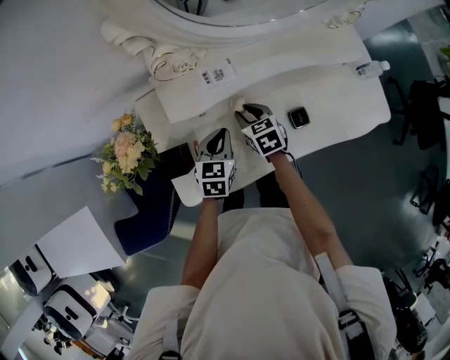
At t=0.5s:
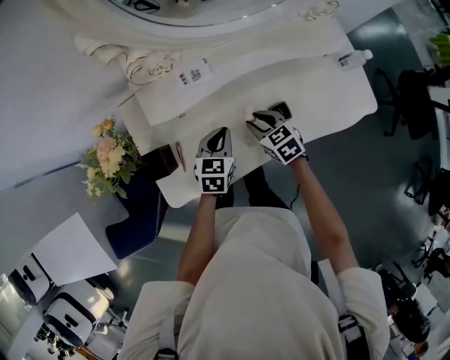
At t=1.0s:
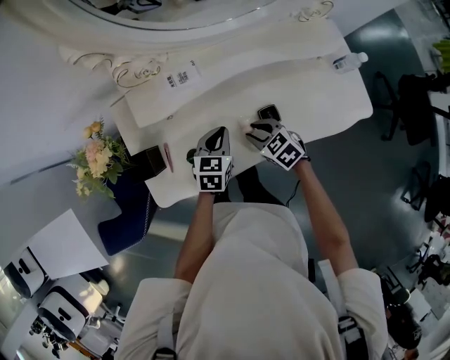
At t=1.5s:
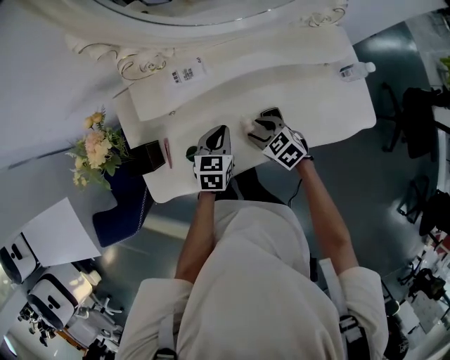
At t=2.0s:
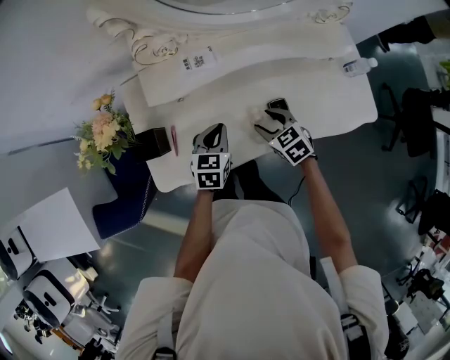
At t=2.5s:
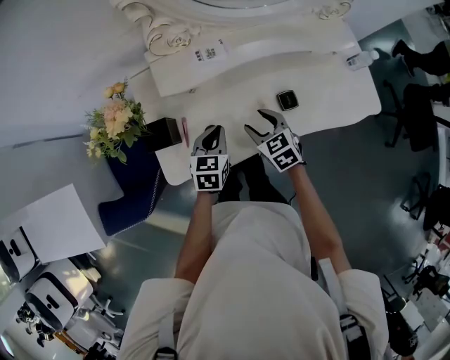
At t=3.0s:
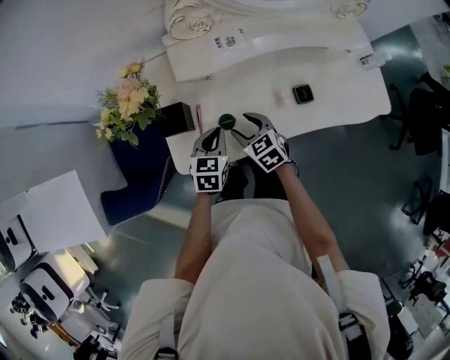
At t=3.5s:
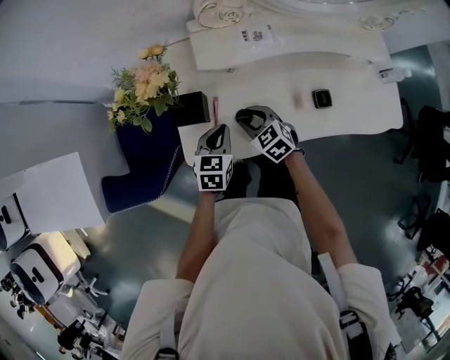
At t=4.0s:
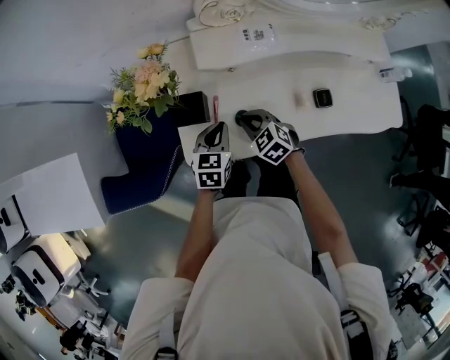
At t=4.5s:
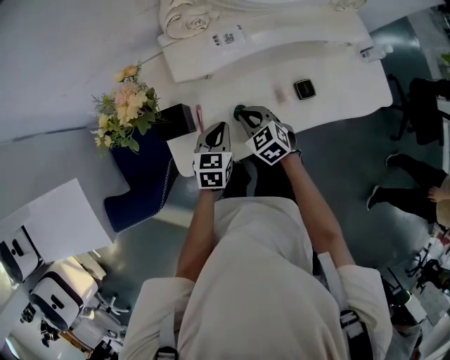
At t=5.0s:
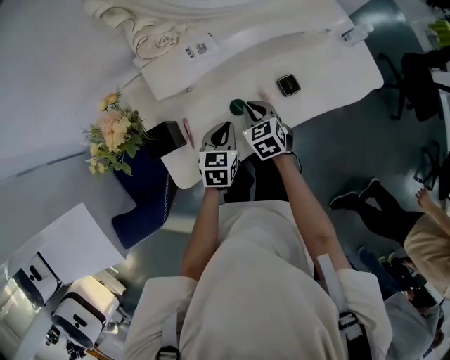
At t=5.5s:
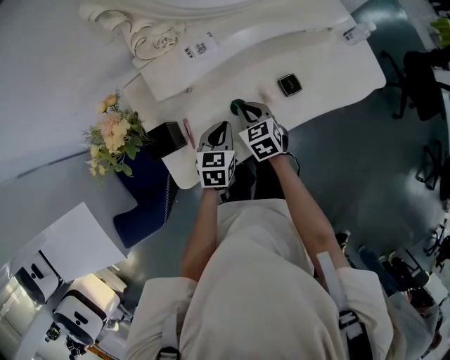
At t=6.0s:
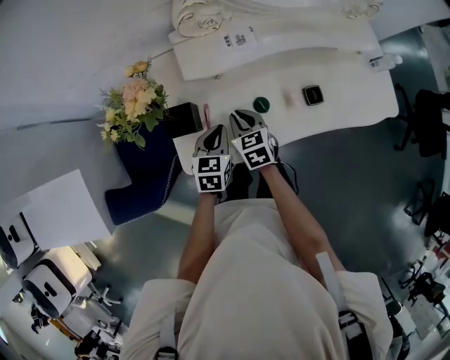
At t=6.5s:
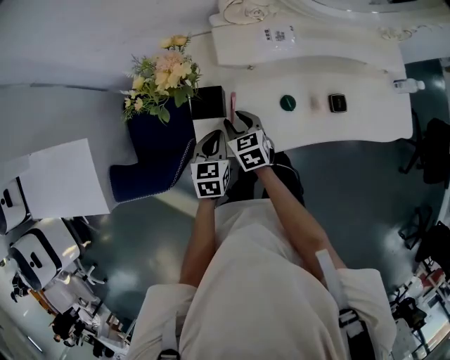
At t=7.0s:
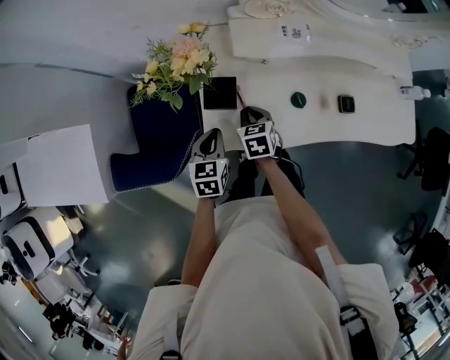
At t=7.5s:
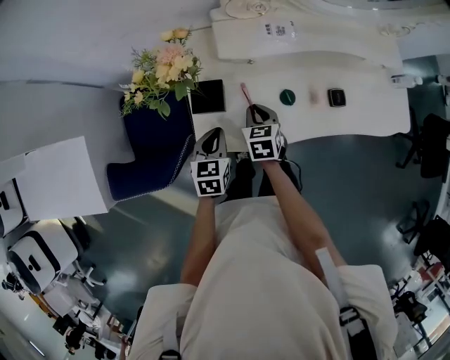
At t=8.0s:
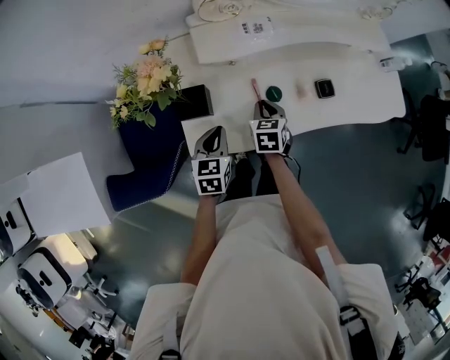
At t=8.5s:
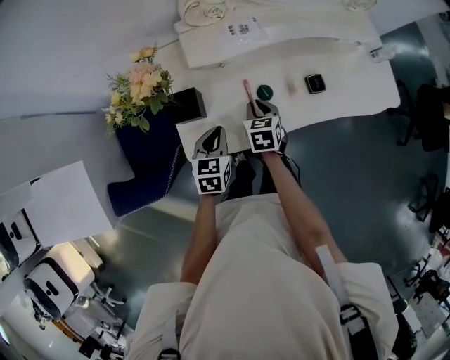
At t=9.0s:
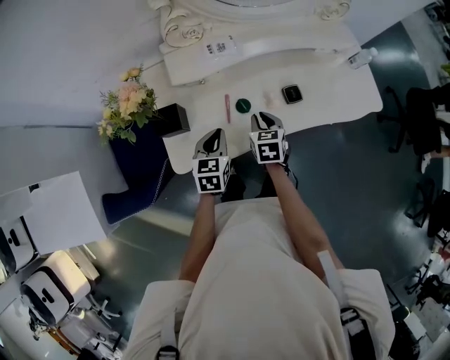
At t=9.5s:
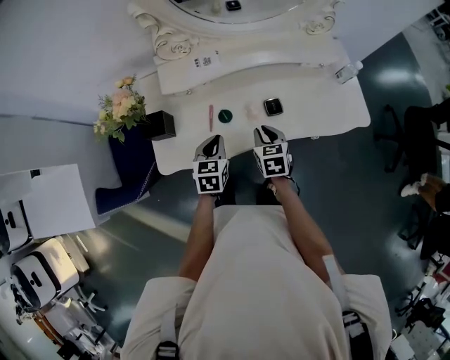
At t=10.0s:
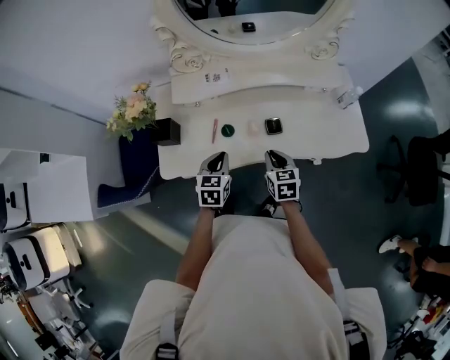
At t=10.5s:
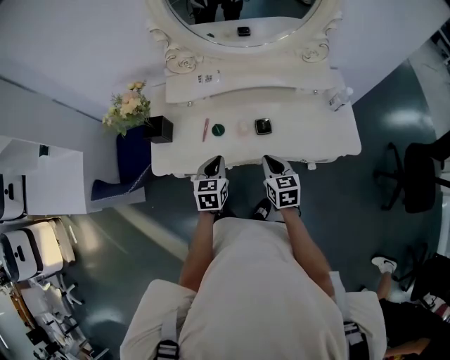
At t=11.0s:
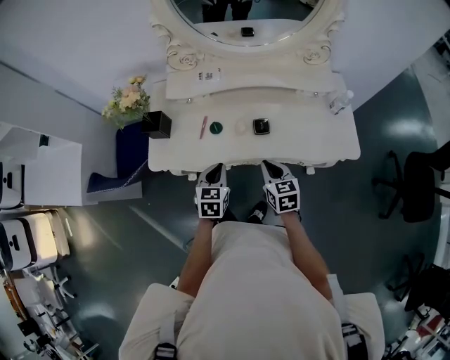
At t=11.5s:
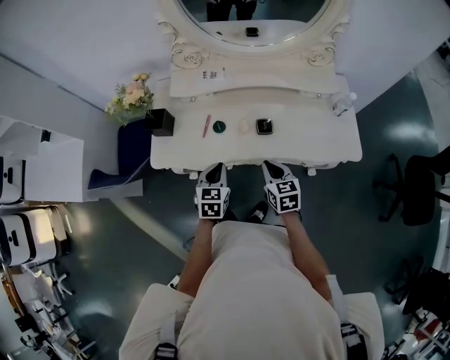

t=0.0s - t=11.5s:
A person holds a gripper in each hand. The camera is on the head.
t=0.0s - t=2.0s: The right gripper goes some 15 cm to the right and backward, and changes its angle by some 20 degrees, while the left gripper is displaced to the right by approximately 5 cm.
t=2.0s - t=4.0s: Both grippers move to the left, some 20 cm. The right gripper closes its fingers.
t=4.0s - t=6.0s: The right gripper swivels some 30 degrees.
t=6.0s - t=7.5s: The right gripper travels to the left and back again, about 10 cm each way, and opens and closes again. The left gripper shifts some 10 cm to the left.
t=7.5s - t=9.5s: The grippers both shift to the right by approximately 25 cm.
t=9.5s - t=11.5s: The grippers both shift backward and to the right by approximately 10 cm.

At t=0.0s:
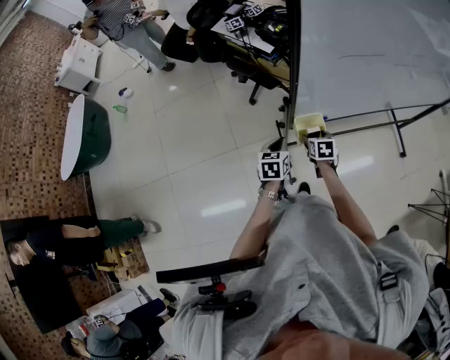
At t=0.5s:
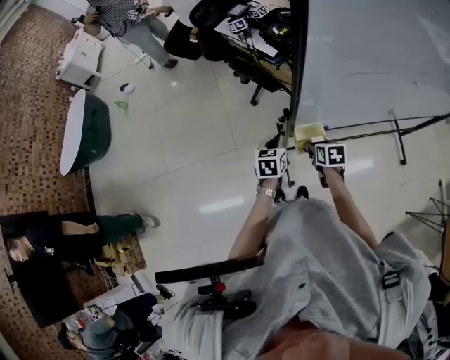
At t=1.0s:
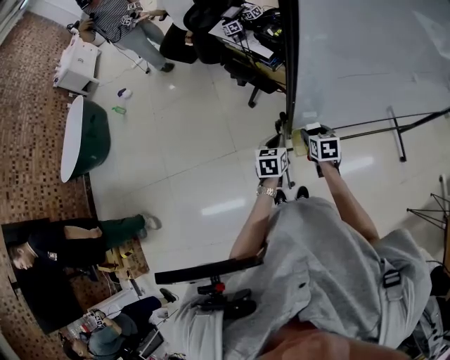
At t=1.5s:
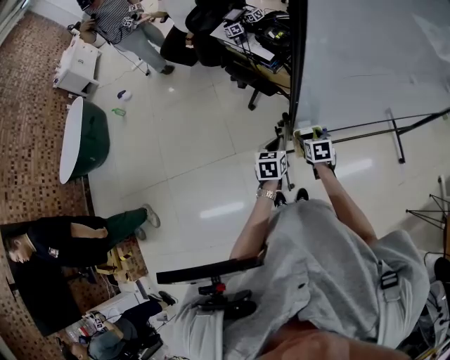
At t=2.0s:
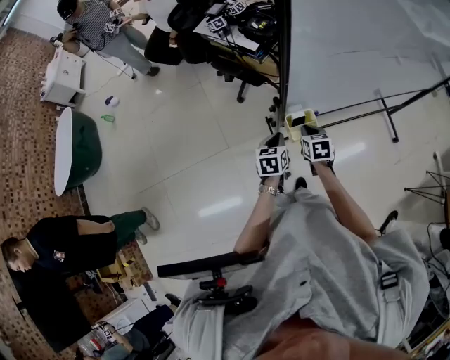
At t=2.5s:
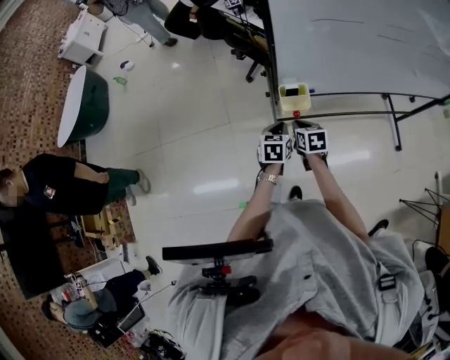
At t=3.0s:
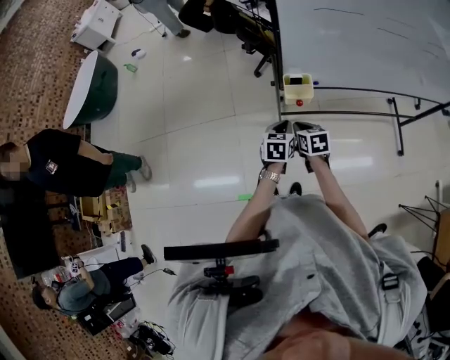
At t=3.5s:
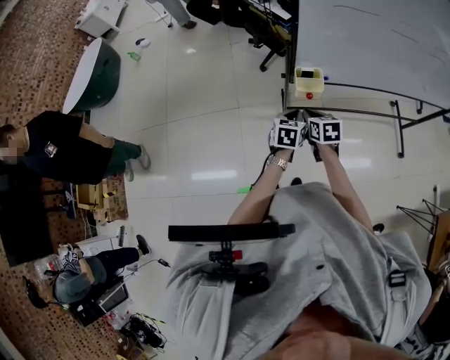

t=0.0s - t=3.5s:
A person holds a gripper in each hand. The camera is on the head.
t=0.0s - t=2.0s: The right gripper goes some 5 cm upward, and closes up.
t=2.0s - t=3.5s: The grippers both shift backward by some 15 cm.

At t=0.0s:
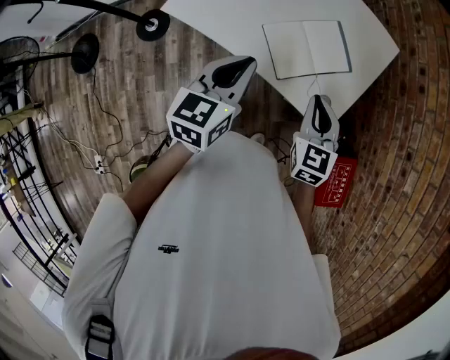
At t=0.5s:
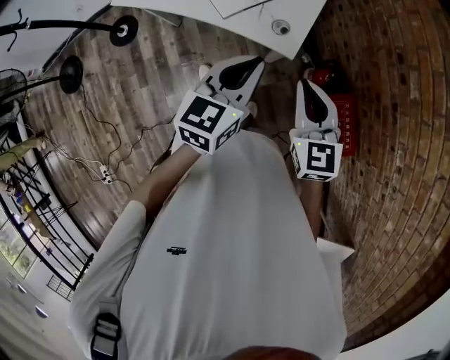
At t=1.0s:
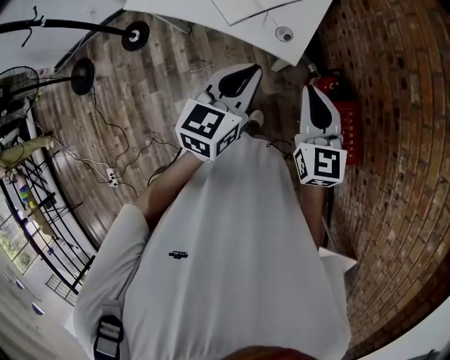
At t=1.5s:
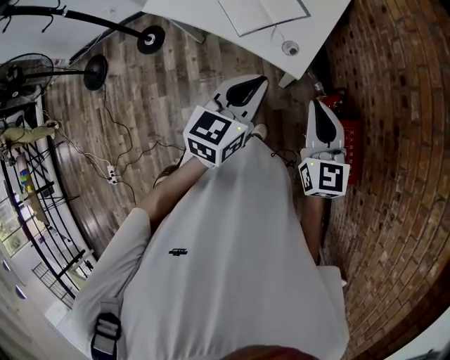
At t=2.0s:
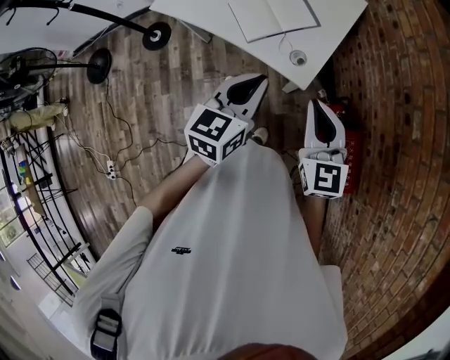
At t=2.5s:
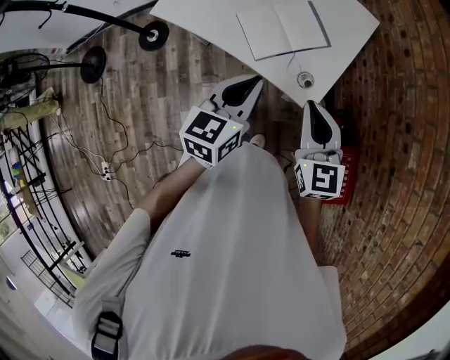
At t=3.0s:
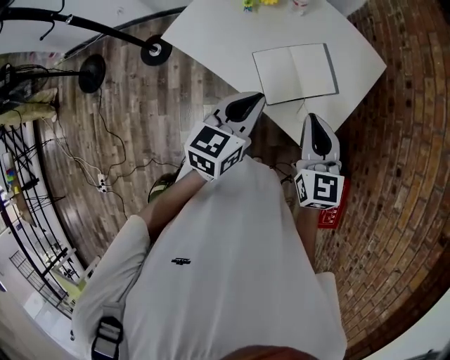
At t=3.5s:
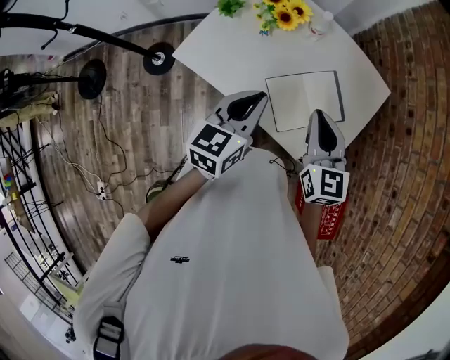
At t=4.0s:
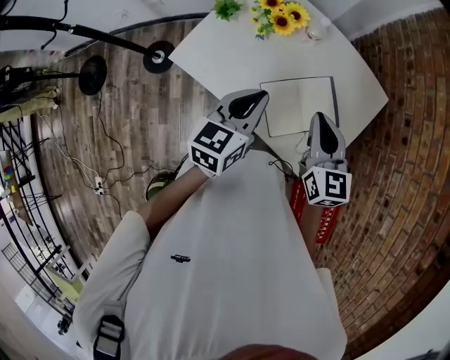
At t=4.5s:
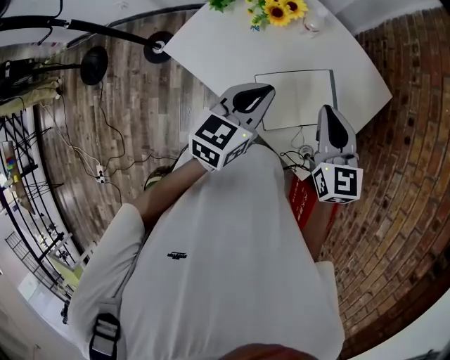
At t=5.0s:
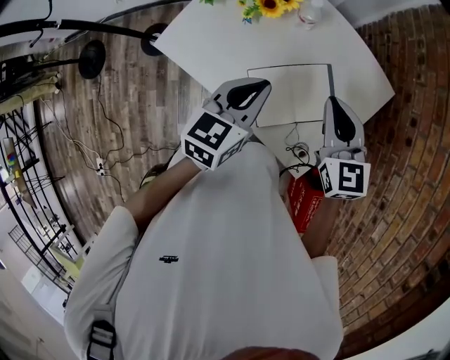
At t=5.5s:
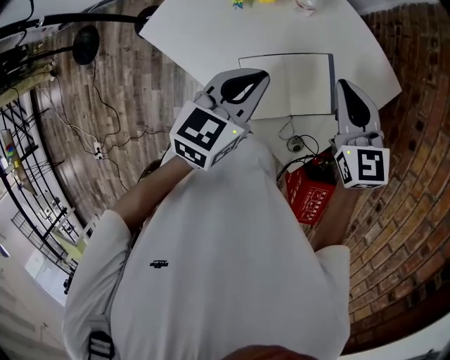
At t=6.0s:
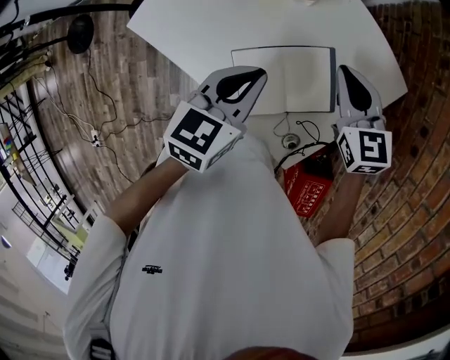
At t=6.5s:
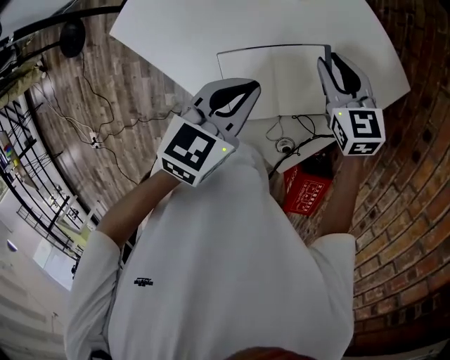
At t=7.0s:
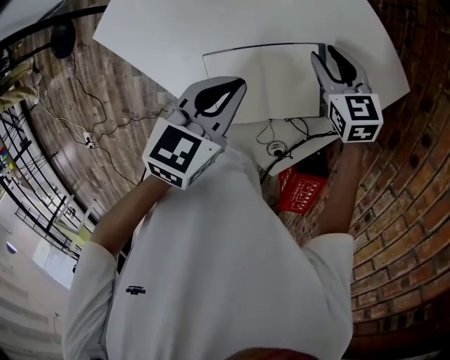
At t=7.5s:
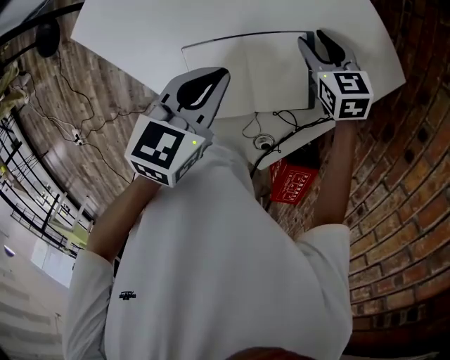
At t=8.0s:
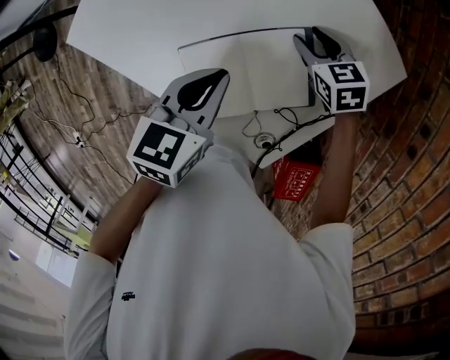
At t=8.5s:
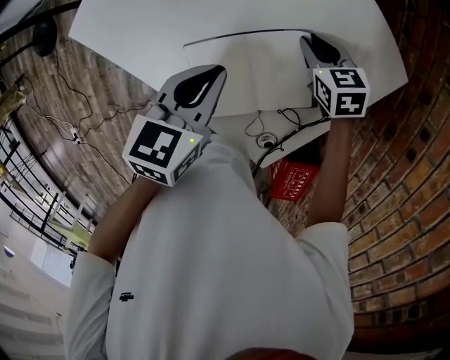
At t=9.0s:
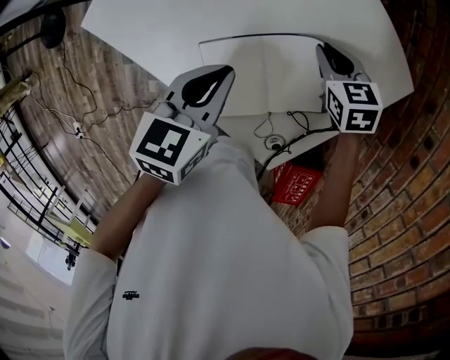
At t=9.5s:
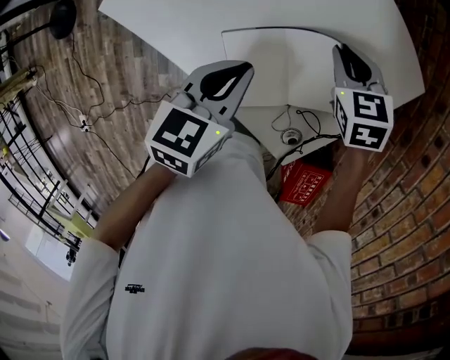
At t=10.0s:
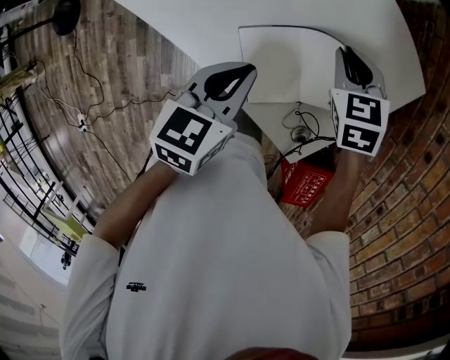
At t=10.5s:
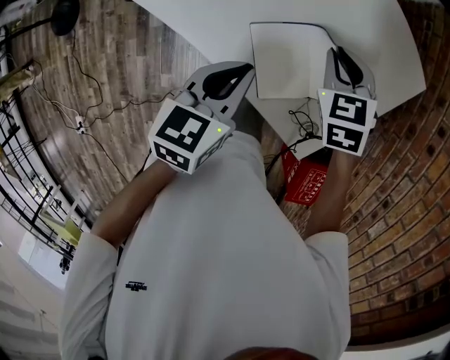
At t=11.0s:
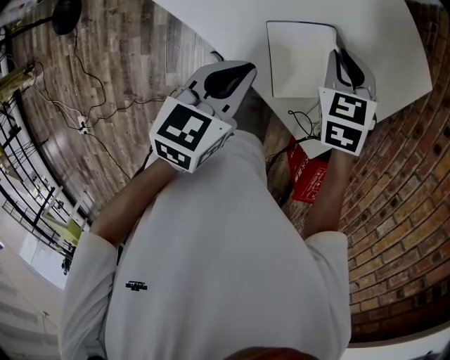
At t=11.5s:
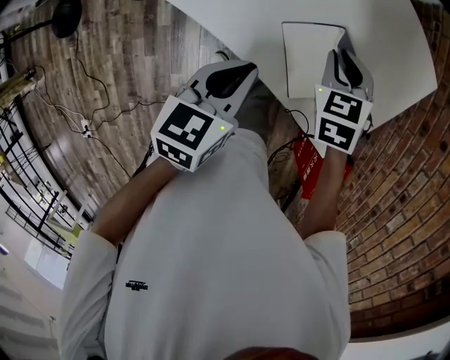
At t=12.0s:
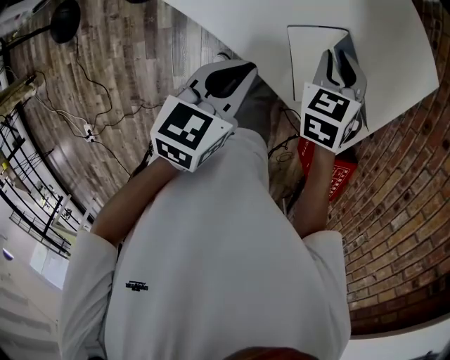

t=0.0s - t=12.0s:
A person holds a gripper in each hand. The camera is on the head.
t=0.0s - t=2.0s: The right gripper moves to the right, backward and upward, approximately 25 cm, and rotates about 20 degrees, while the left gripper goes some 25 cm to the right and backward.
t=2.0s - t=4.0s: The two grippers go roughly 35 cm forward and to the left.
t=4.0s - t=6.0s: The left gripper moves to the right, downward and forward, some 15 cm. The right gripper heads forward, downward and to the right, covering approximately 20 cm, and swivels some 20 degrees.
t=6.0s - t=8.0s: The right gripper moves downward, approximately 20 cm, changes its angle by approximately 20 degrees, and opens. Meanwhile the left gripper moves downward, some 10 cm.
t=8.0s - t=10.0s: The left gripper travels to the left and backward by about 10 cm. The right gripper heads upward and to the left, covering approximately 15 cm, and closes its fingers.
t=10.0s - t=12.0s: The grippers both shift to the left and backward by some 15 cm.
